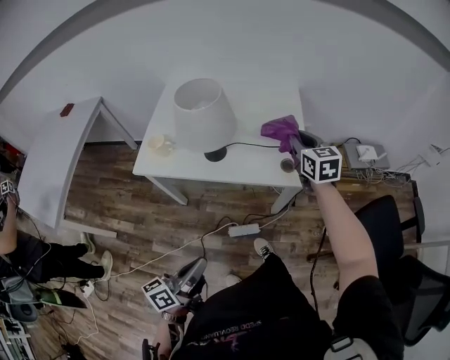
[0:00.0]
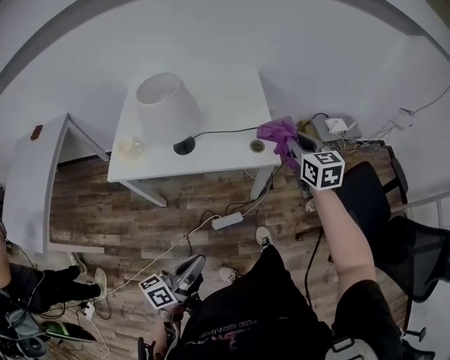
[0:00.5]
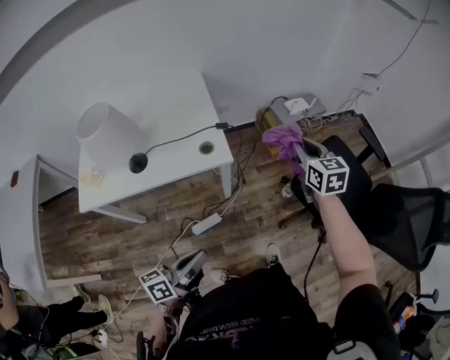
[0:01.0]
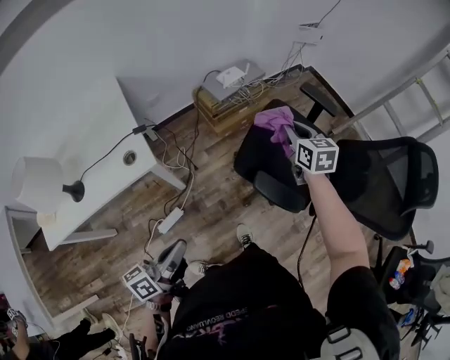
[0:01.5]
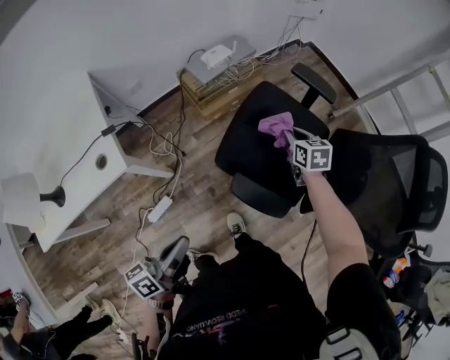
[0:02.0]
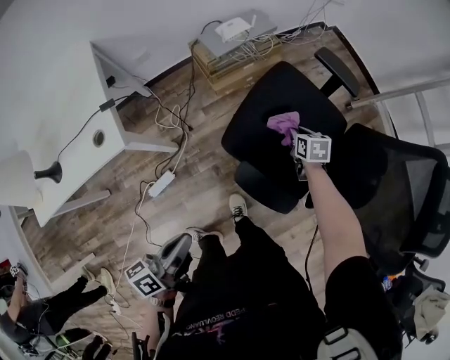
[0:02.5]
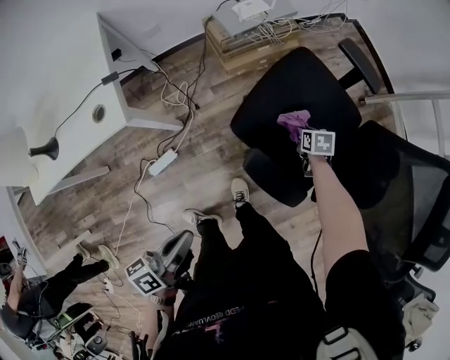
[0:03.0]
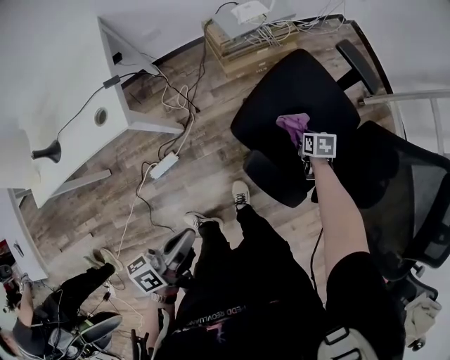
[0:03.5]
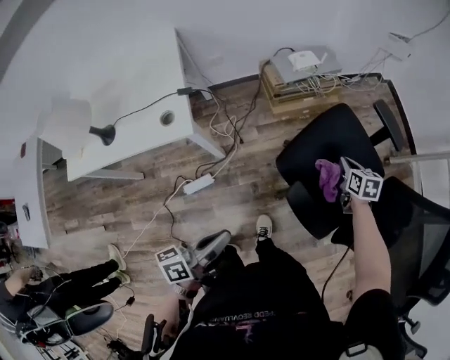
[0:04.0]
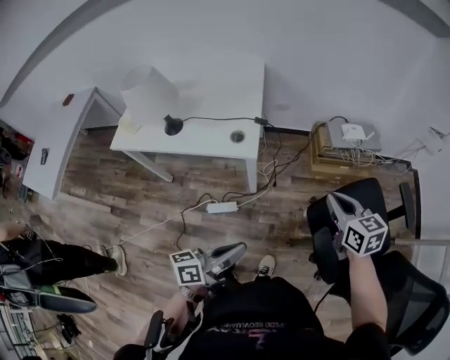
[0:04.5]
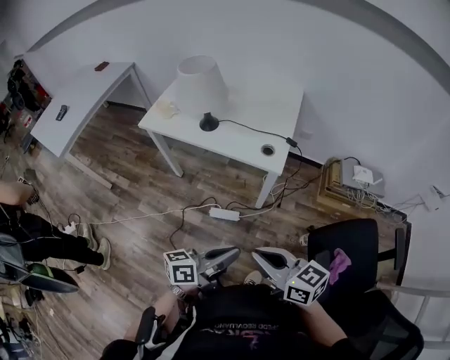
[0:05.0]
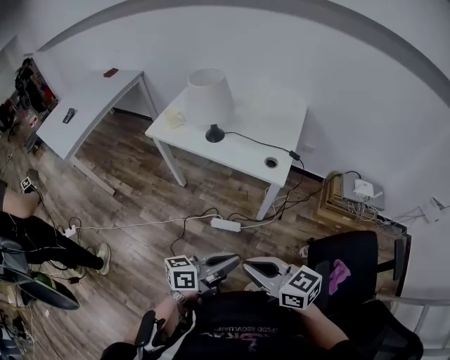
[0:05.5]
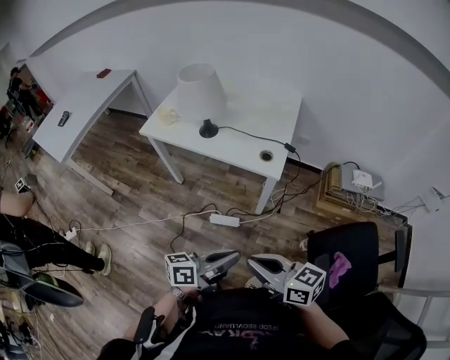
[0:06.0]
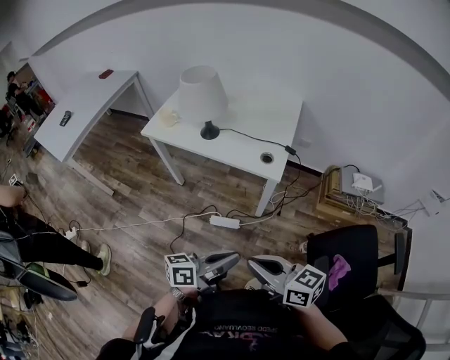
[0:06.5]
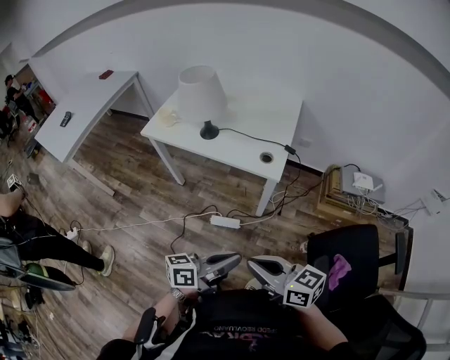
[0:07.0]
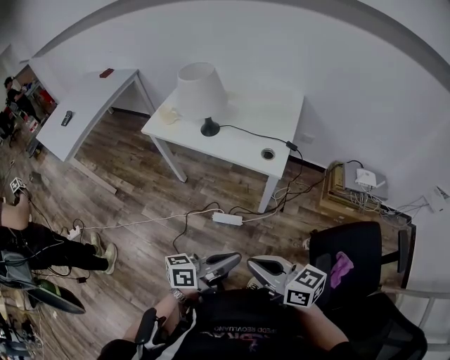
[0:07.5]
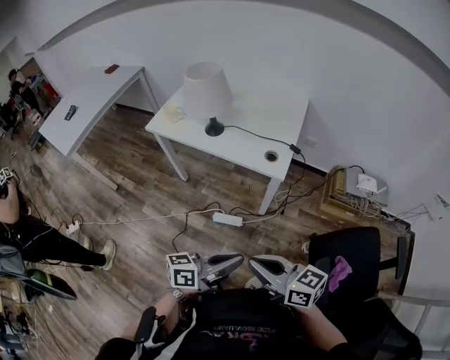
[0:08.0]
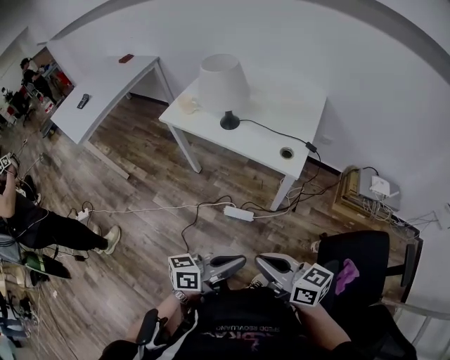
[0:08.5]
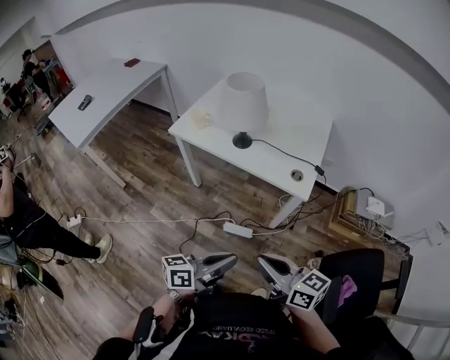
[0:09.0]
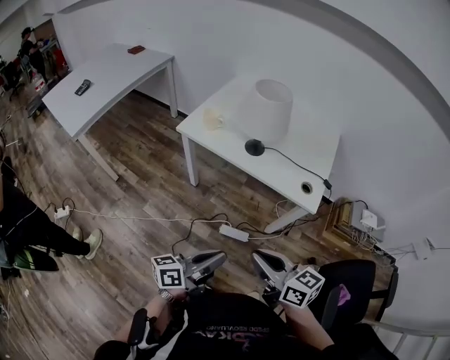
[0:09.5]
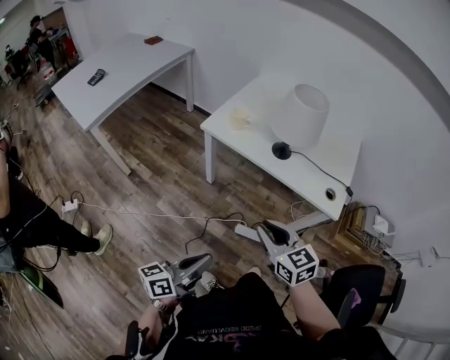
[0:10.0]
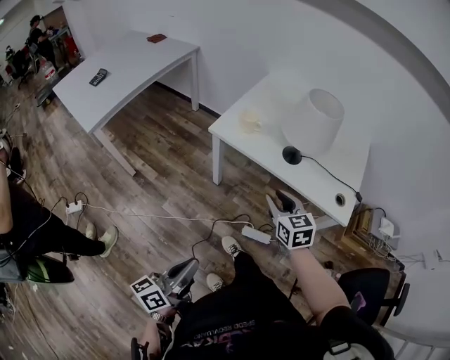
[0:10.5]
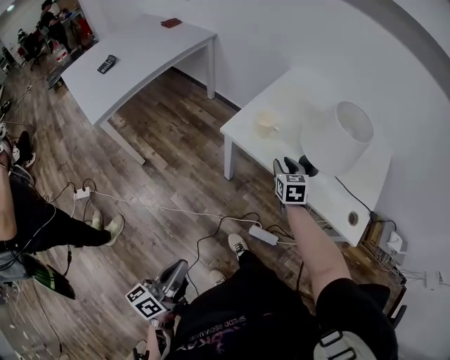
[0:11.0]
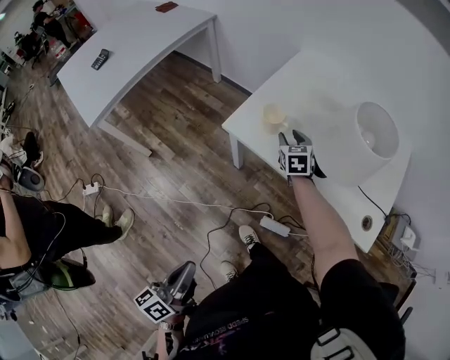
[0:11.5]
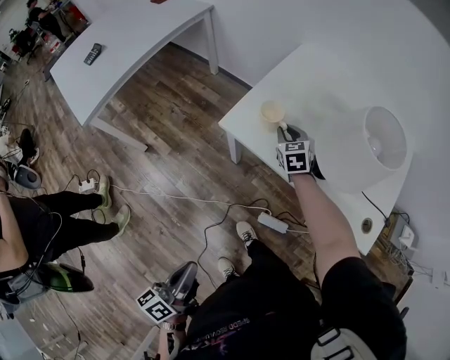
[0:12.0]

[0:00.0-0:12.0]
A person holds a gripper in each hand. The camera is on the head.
0:00.0 to 0:02.0: The pair of grippers is taken about 60 cm. The right gripper changes its angle by about 50 degrees; the left gripper changes its angle by roughly 40 degrees.
0:02.0 to 0:04.0: The right gripper travels downward and back again, roughly 20 cm each way.
0:04.0 to 0:06.0: The right gripper moves some 60 cm, and tilts its fingers about 40 degrees upward. The left gripper ends up roughly 15 cm from where it was, and turns by approximately 20 degrees.
0:06.0 to 0:08.0: The grippers move only a little.
0:08.0 to 0:10.0: The right gripper shifts approximately 30 cm to the left and forward, and swivels about 30 degrees; the left gripper shifts some 35 cm to the left, and swivels approximately 20 degrees.
0:10.0 to 0:12.0: The left gripper moves forward and to the left, some 15 cm, and swivels about 30 degrees. Meanwhile the right gripper goes about 50 cm forward.

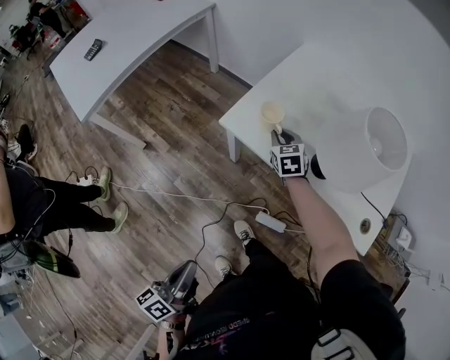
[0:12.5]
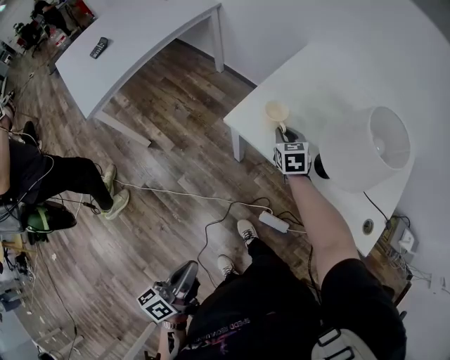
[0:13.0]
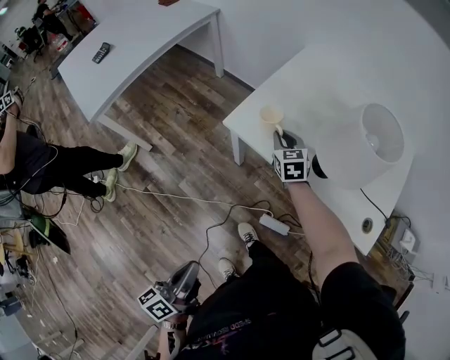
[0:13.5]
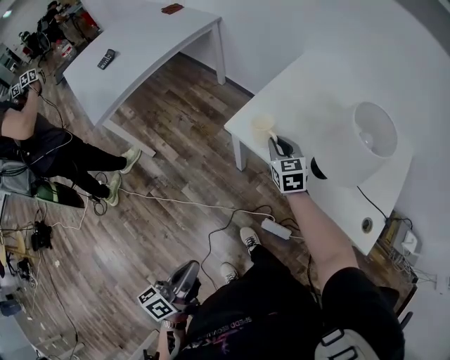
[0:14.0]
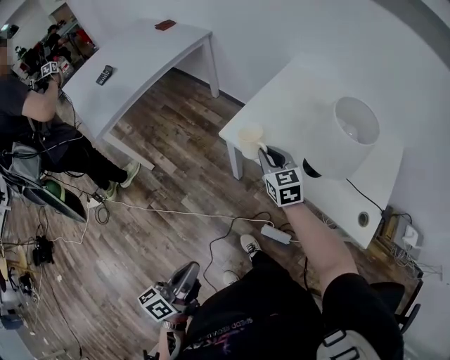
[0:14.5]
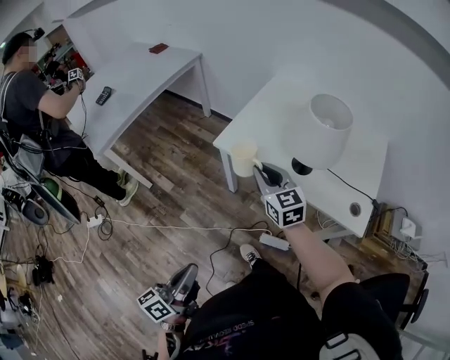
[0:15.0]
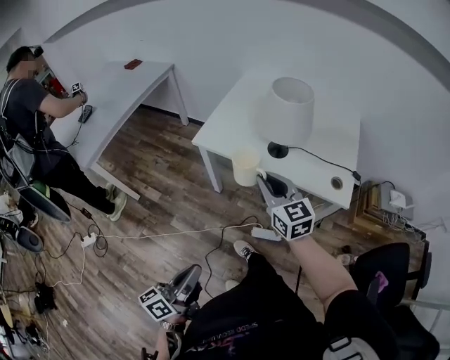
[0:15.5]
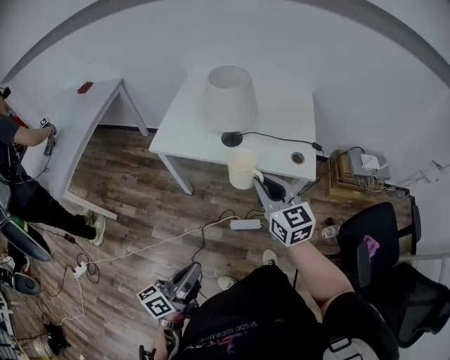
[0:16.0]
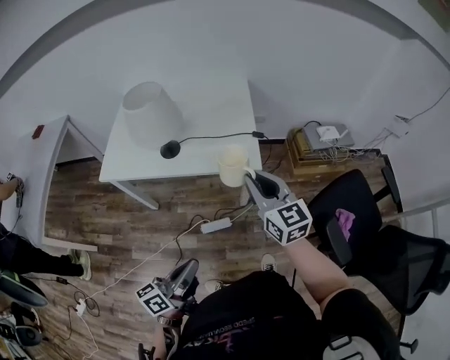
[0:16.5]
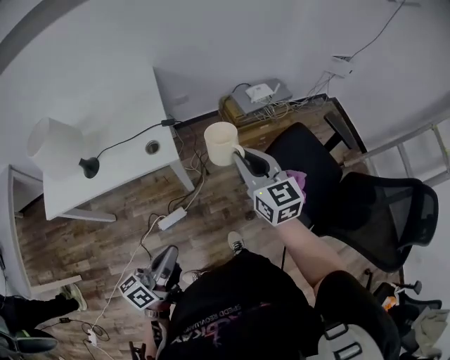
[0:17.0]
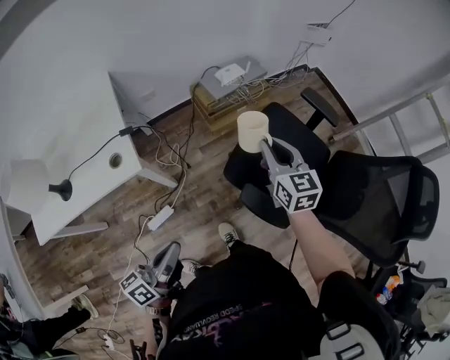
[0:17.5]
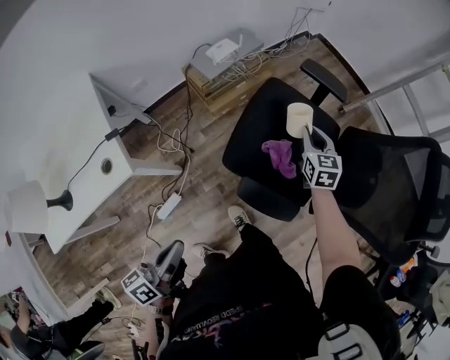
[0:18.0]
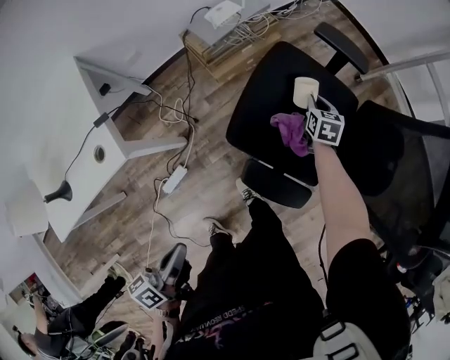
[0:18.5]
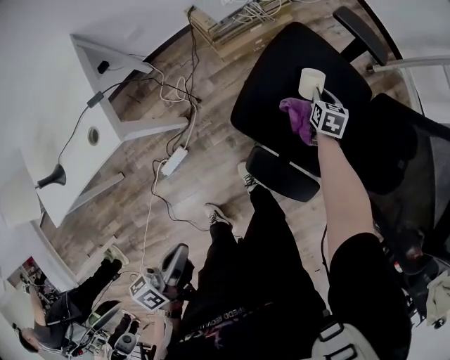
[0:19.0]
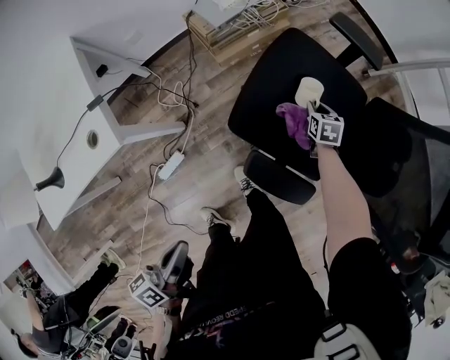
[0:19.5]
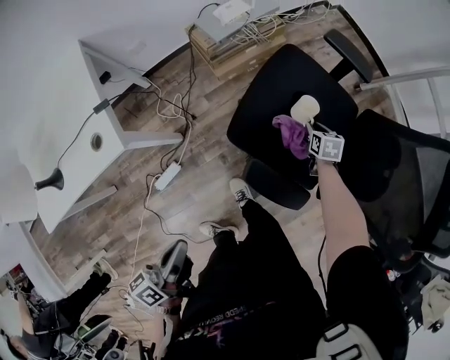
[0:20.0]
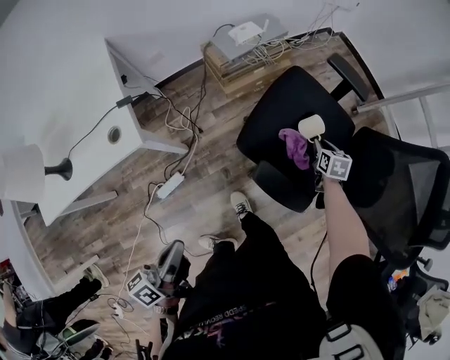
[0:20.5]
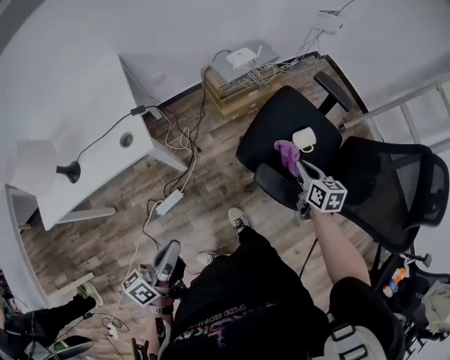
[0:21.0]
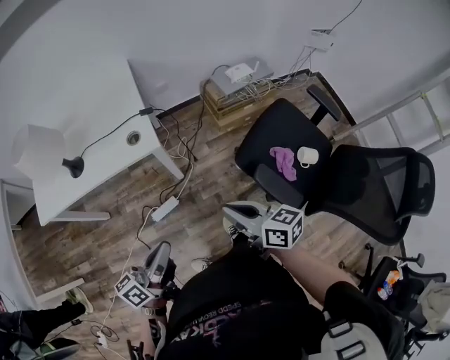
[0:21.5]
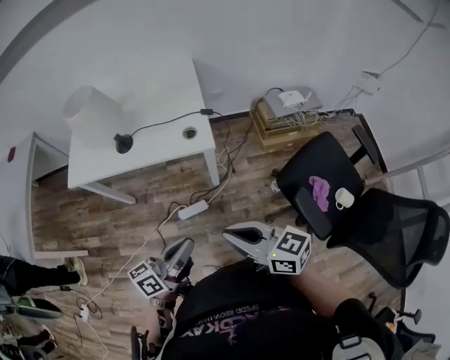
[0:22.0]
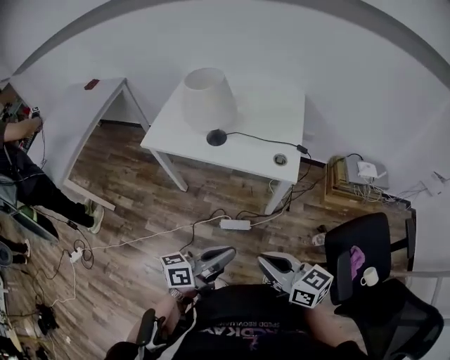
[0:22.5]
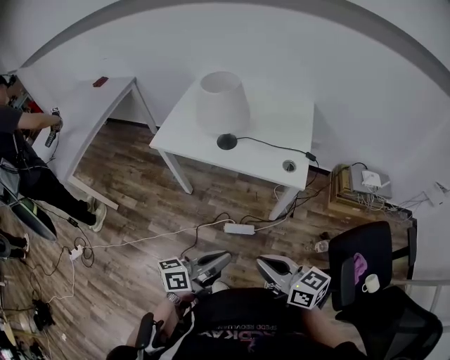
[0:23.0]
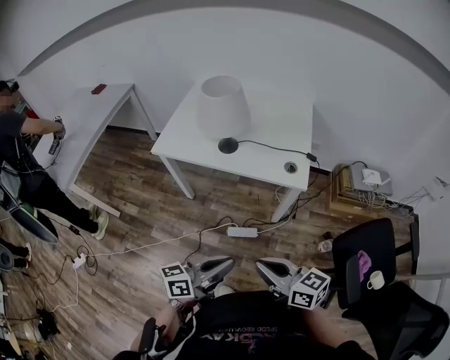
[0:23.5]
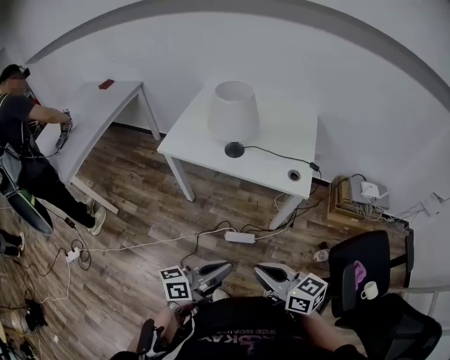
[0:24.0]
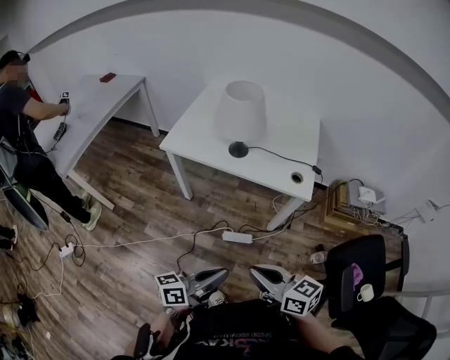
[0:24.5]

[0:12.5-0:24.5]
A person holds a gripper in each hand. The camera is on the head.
0:12.5 to 0:14.5: The right gripper moves upward and backward, about 15 cm.
0:14.5 to 0:16.5: The left gripper ends up roughly 25 cm from where it was, and rotates roughly 50 degrees. The right gripper shifts by some 50 cm, and rotates about 40 degrees.
0:16.5 to 0:18.5: The left gripper shifts by roughly 35 cm, and turns by about 30 degrees; the right gripper shifts by about 80 cm, and points its fingers about 40 degrees further downward.
0:18.5 to 0:20.5: The right gripper is displaced backward by some 10 cm. The left gripper ends up about 5 cm from where it was.
0:20.5 to 0:22.5: The right gripper moves roughly 70 cm, and angles its fingers upward, by about 40 degrees. Meanwhile the left gripper changes place by about 20 cm.
0:22.5 to 0:24.5: The two grippers go about 10 cm to the left.

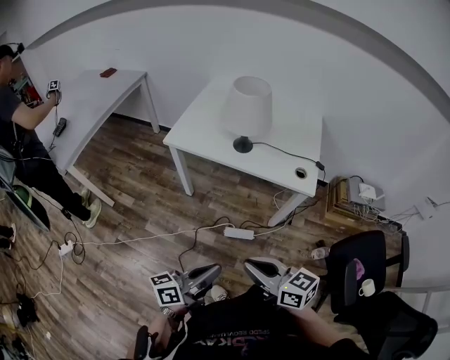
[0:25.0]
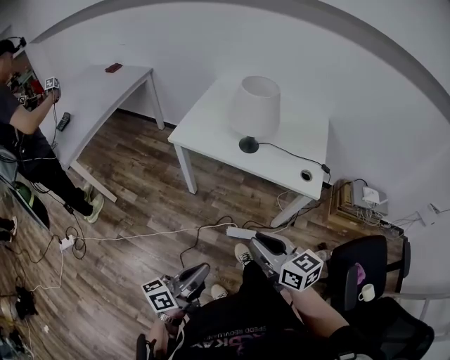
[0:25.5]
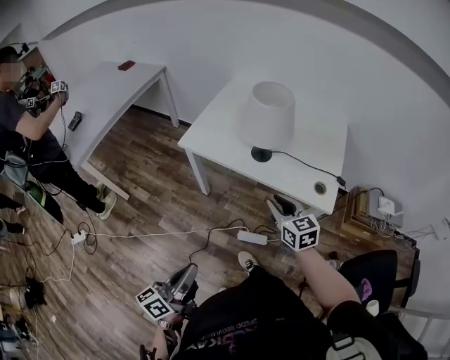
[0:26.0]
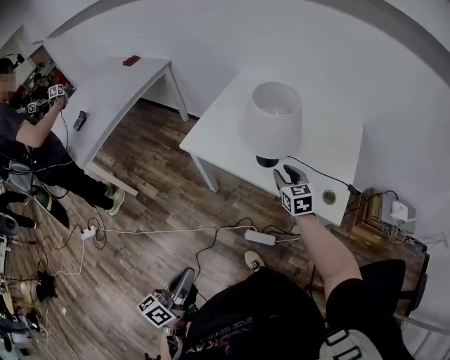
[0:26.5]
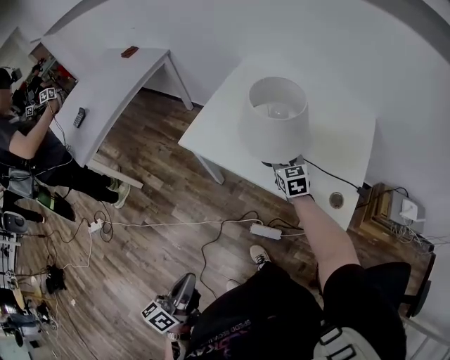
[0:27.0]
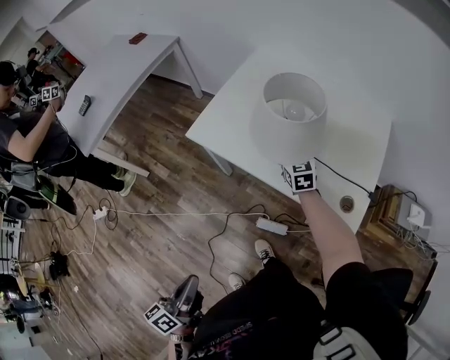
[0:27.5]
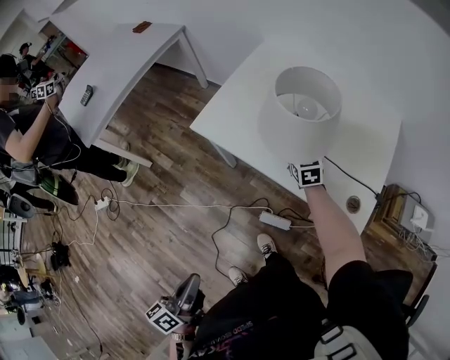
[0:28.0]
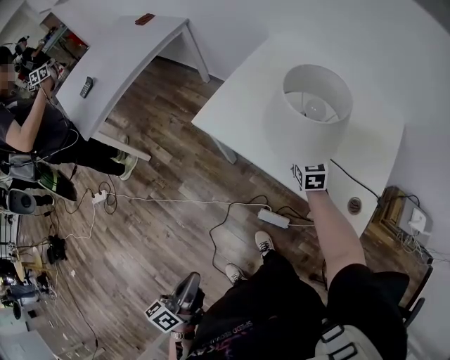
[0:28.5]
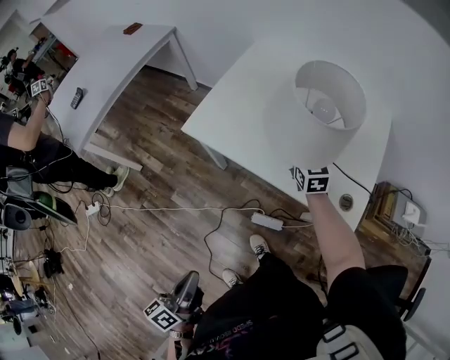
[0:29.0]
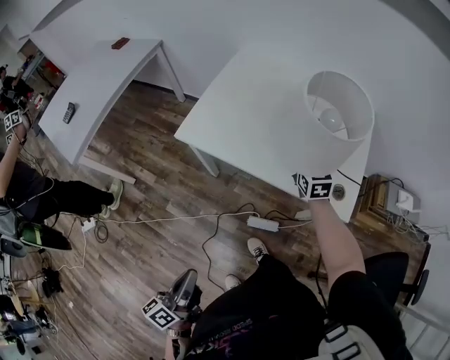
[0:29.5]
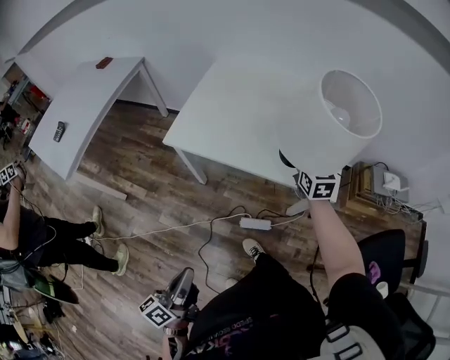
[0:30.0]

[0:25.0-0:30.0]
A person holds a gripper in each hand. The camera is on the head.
0:25.0 to 0:27.5: The left gripper travels forward and to the left by some 10 cm, and changes its angle by some 50 degrees. Meanwhile the right gripper goes some 50 cm forward, rotates roughly 30 degrees, and opens.
0:27.5 to 0:30.0: The right gripper heads upward, backward and to the right, covering approximately 20 cm, and rotates approximately 20 degrees.
